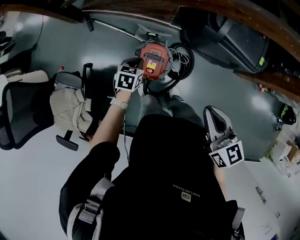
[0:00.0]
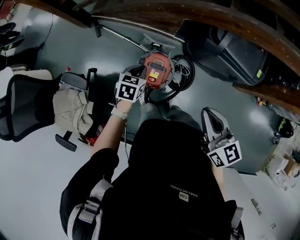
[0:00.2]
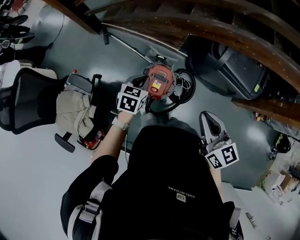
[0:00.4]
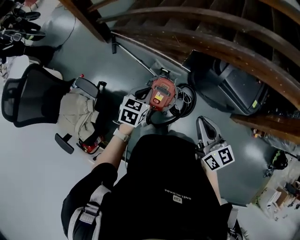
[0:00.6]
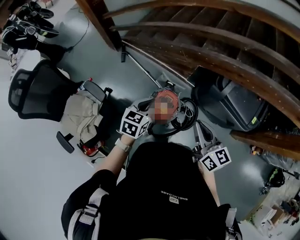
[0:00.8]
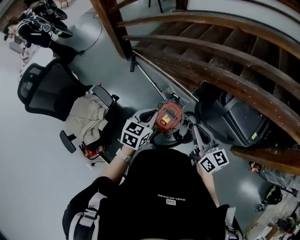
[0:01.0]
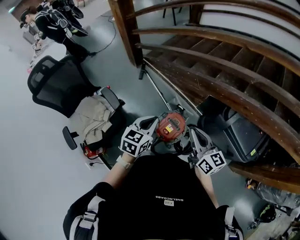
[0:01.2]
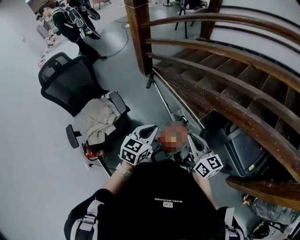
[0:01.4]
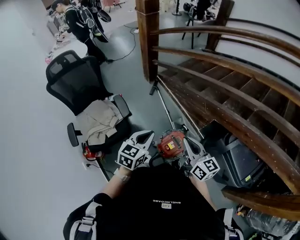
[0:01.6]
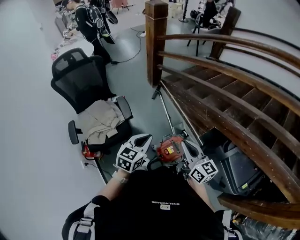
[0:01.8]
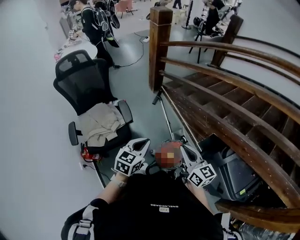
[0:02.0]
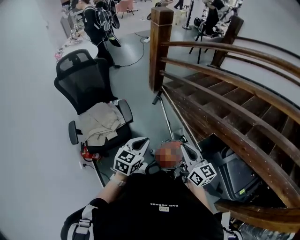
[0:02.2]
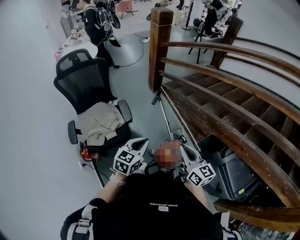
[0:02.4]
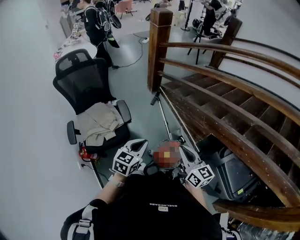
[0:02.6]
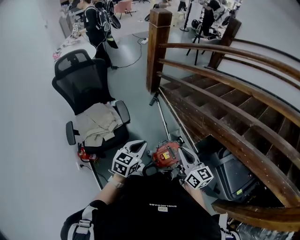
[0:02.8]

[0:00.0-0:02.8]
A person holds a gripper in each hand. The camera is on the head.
0:00.0 to 0:01.4: The right gripper changes place by some 15 cm, and rotates roughly 40 degrees. The left gripper travels upward by approximately 30 cm, and swivels approximately 40 degrees.
0:01.4 to 0:02.8: The two grippers go approximately 5 cm to the left.

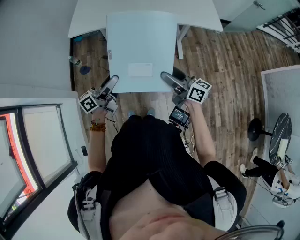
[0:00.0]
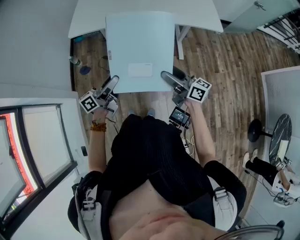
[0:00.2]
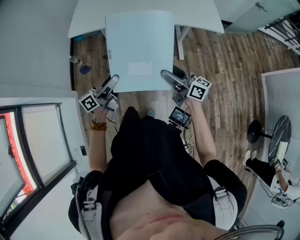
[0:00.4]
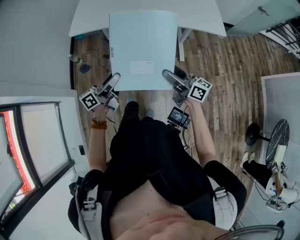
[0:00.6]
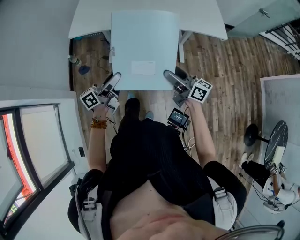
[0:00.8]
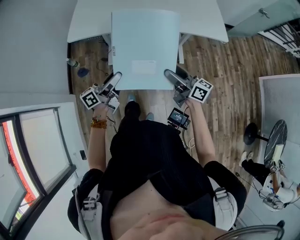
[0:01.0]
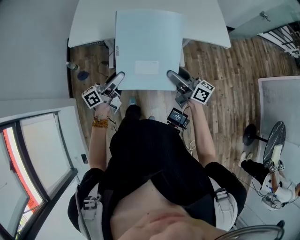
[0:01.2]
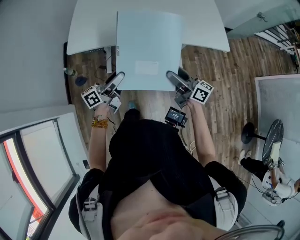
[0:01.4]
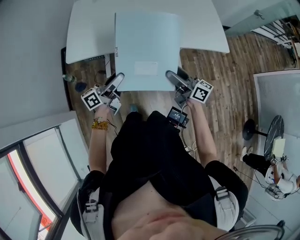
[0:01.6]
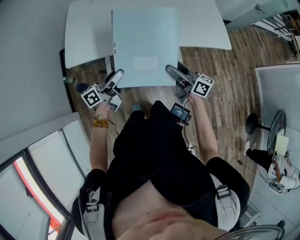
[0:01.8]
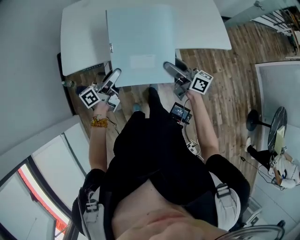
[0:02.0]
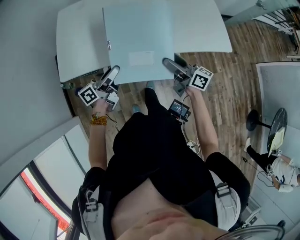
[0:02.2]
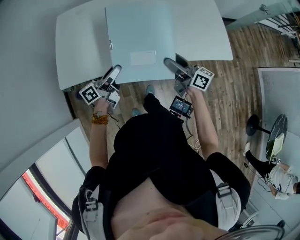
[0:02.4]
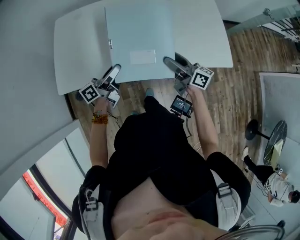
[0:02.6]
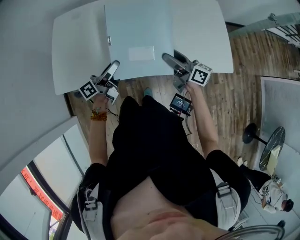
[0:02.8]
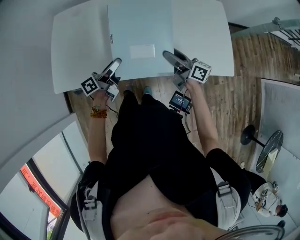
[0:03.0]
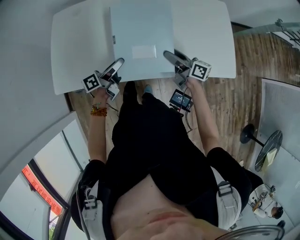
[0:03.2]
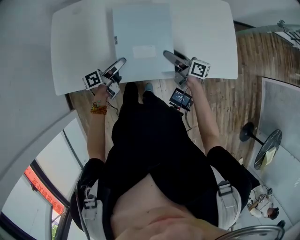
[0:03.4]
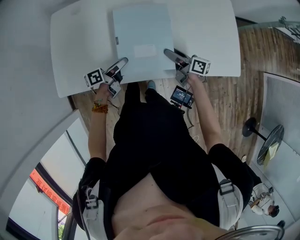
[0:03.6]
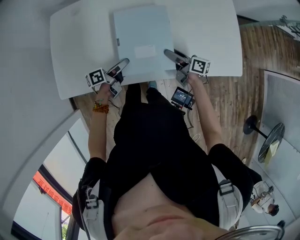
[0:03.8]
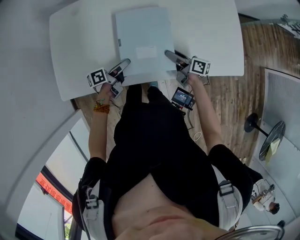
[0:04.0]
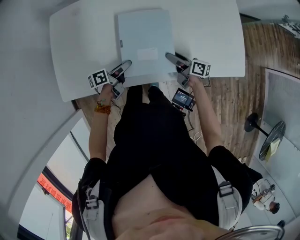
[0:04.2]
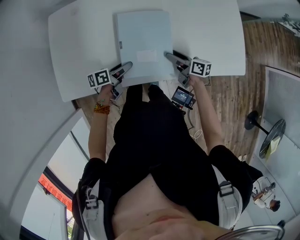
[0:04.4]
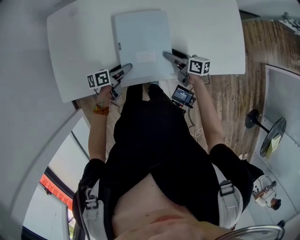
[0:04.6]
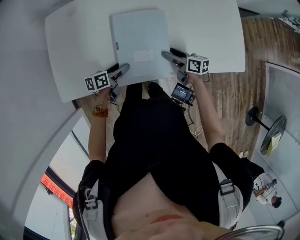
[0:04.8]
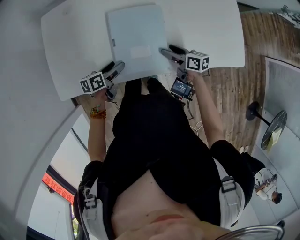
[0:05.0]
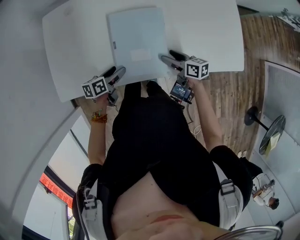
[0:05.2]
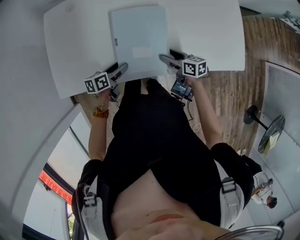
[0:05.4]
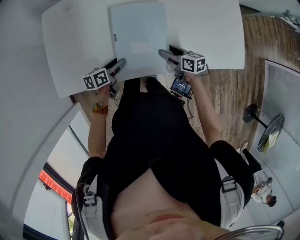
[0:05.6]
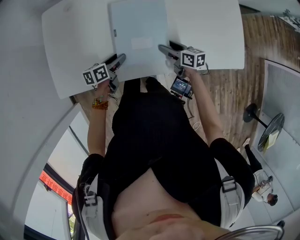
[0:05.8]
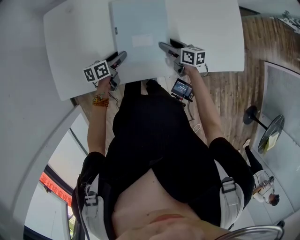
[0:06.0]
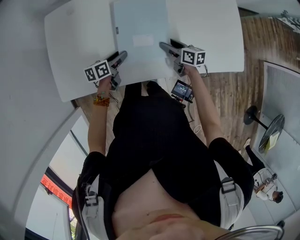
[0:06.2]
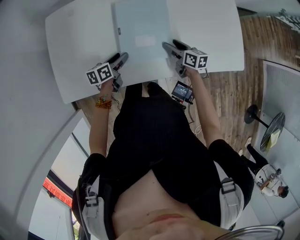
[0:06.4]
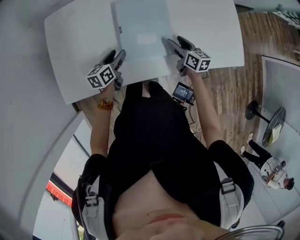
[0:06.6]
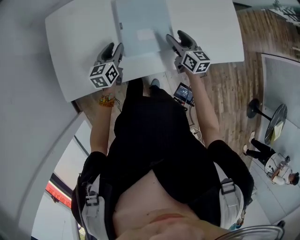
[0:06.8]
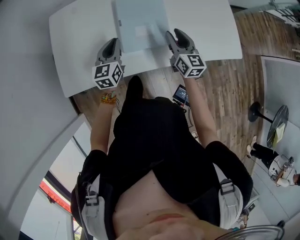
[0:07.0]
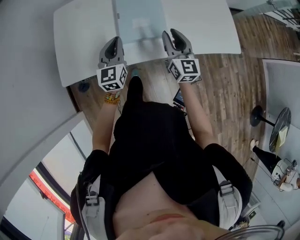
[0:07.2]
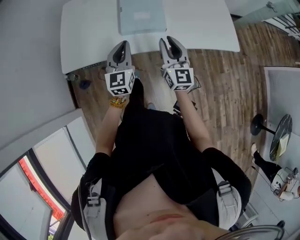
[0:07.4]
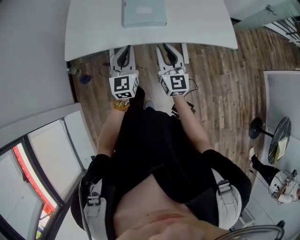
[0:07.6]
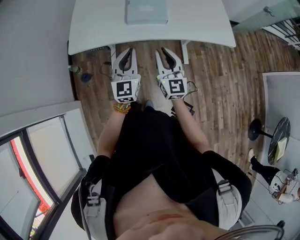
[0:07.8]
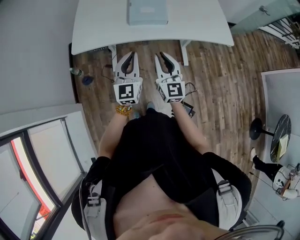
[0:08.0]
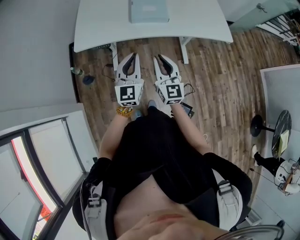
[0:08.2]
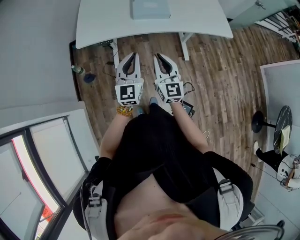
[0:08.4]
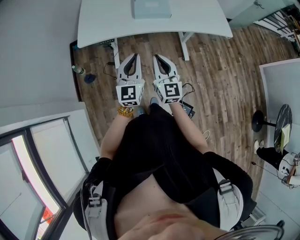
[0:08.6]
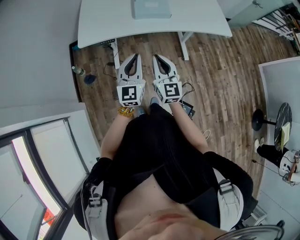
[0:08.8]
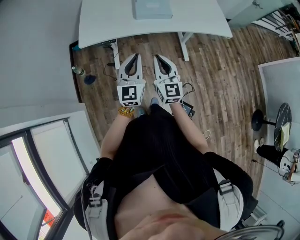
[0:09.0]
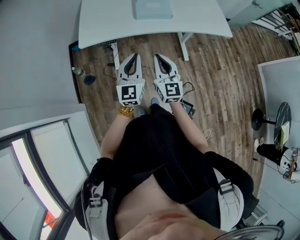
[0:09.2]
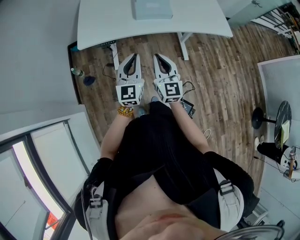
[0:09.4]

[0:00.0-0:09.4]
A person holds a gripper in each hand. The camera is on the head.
0:00.0 to 0:01.6: Both grippers stay put.
0:01.6 to 0:03.2: The left gripper is displaced forward and downward by some 20 cm; the right gripper shifts roughly 20 cm forward.
0:03.2 to 0:04.8: Both grippers move downward, approximately 10 cm. The left gripper turns by some 30 degrees.
0:04.8 to 0:06.2: The left gripper travels forward by about 5 cm.
0:06.2 to 0:07.8: The two grippers go approximately 35 cm backward and upward. The right gripper tips its fingers upward by about 30 degrees, and closes its fingers; the left gripper angles its fingers upward, by about 30 degrees, and closes.
0:07.8 to 0:09.4: The left gripper heads backward and to the left, covering about 10 cm. Meanwhile the right gripper goes about 15 cm to the left and backward.

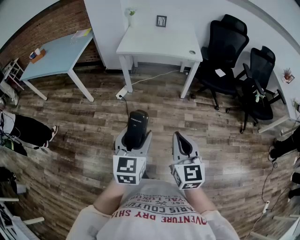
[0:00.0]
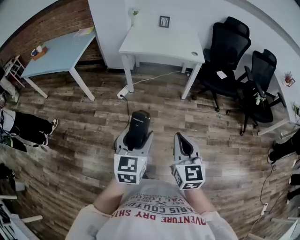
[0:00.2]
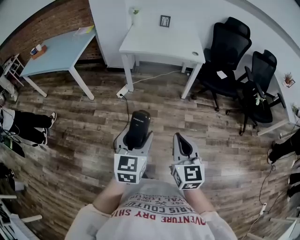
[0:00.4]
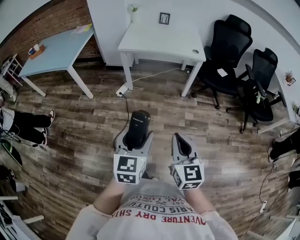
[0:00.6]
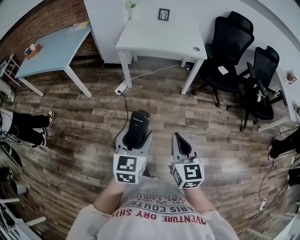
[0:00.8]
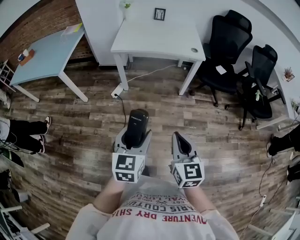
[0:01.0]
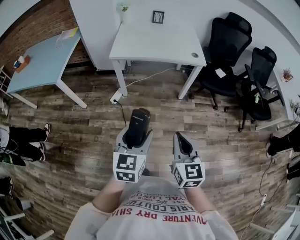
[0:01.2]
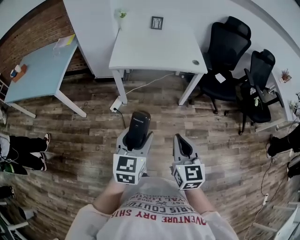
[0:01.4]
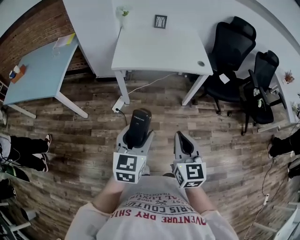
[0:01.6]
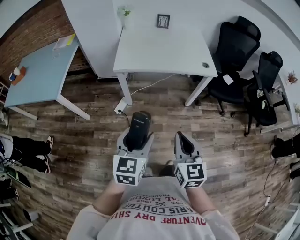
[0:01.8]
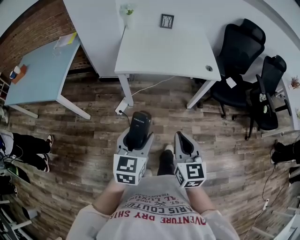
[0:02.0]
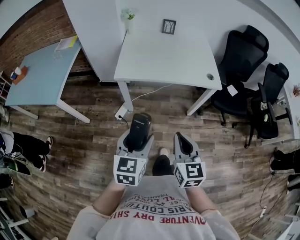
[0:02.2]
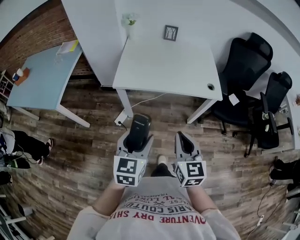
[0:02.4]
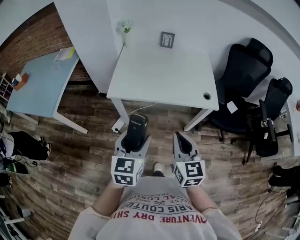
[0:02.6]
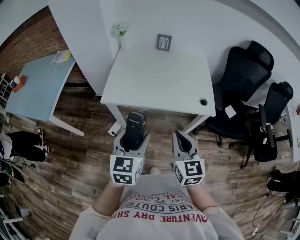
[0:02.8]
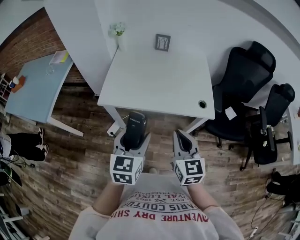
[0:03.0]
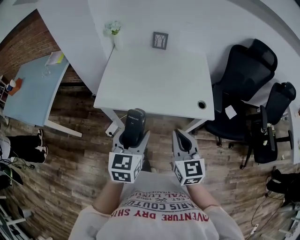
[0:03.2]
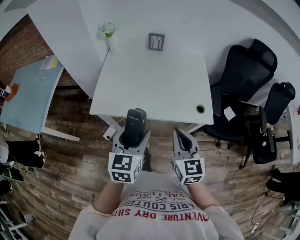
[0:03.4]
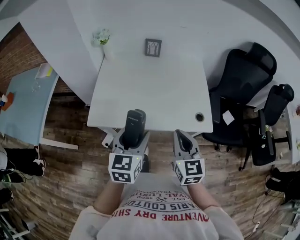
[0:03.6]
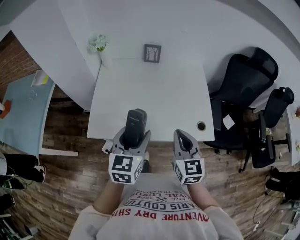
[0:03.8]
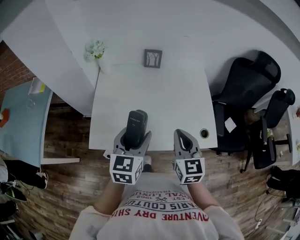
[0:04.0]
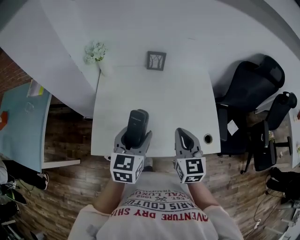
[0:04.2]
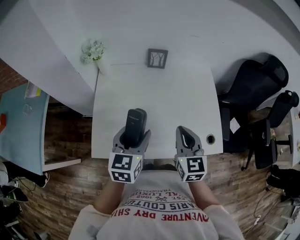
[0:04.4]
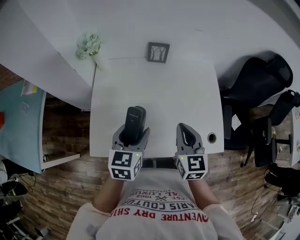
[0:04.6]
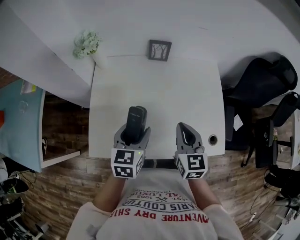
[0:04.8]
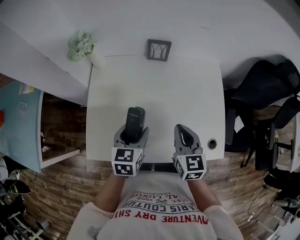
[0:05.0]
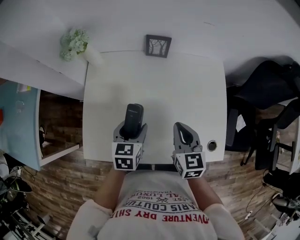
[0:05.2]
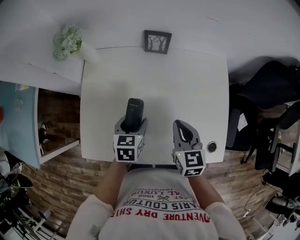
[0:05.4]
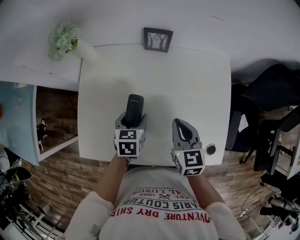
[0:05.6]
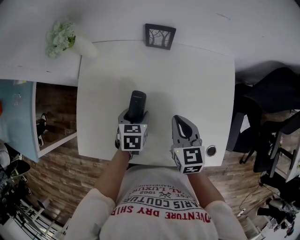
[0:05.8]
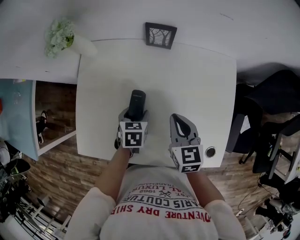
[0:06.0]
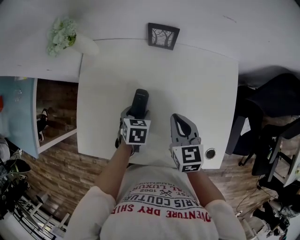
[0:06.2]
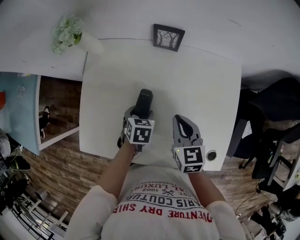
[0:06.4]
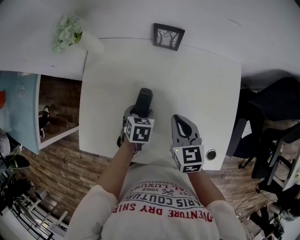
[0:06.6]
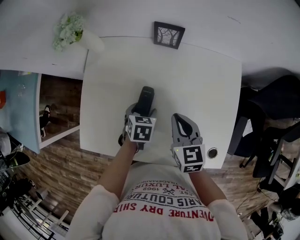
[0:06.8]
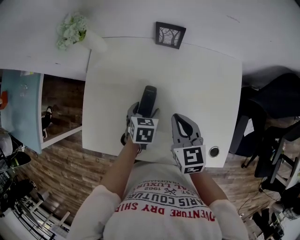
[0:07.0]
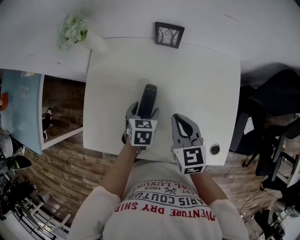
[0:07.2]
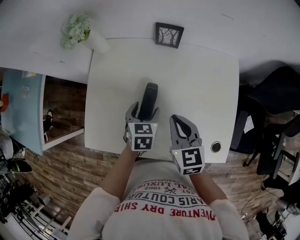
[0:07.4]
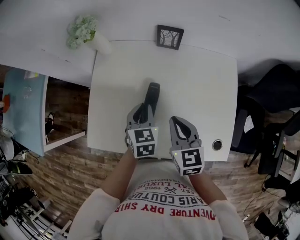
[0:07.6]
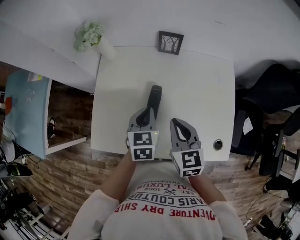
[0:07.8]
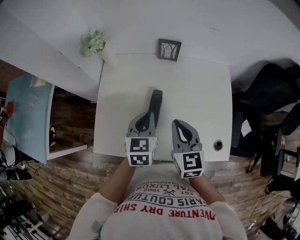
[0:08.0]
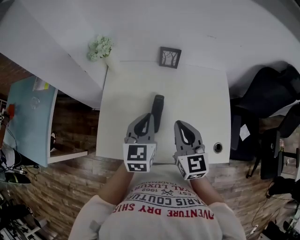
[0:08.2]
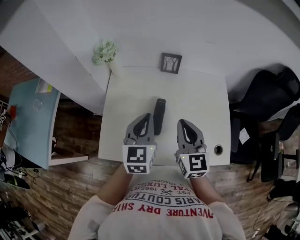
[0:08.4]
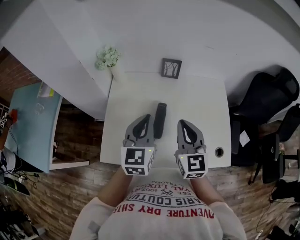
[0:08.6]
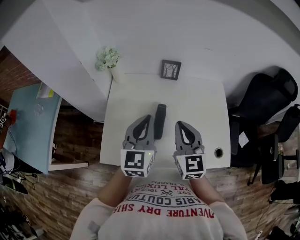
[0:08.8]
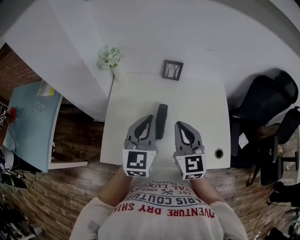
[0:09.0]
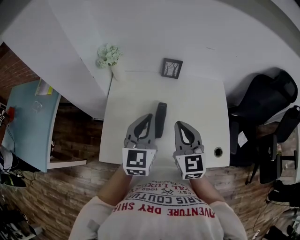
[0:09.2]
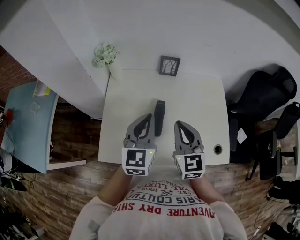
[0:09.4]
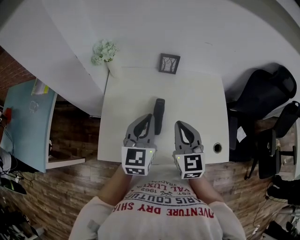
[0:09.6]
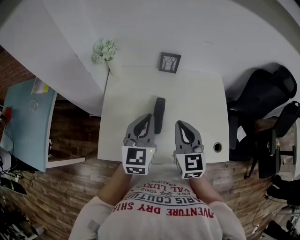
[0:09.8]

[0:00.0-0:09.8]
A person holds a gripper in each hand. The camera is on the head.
0:00.0 to 0:01.4: The left gripper travels forward by some 25 cm, while the right gripper is displaced forward and to the left by approximately 25 cm.
0:01.4 to 0:02.8: Both grippers move forward, about 35 cm.
0:02.8 to 0:04.2: Both grippers move forward, some 35 cm.
0:04.2 to 0:05.6: The right gripper goes approximately 20 cm forward and downward; the left gripper travels downward and forward by about 25 cm, and rotates some 30 degrees.
0:05.6 to 0:07.0: The grippers stay close to where they were, moving slightly.
0:07.0 to 0:08.4: The left gripper moves upward, roughly 25 cm, tilts its fingers approximately 40 degrees upward, and closes its fingers. The right gripper shifts approximately 15 cm upward and backward, and swivels about 30 degrees.
0:08.4 to 0:09.8: The grippers move only a little.

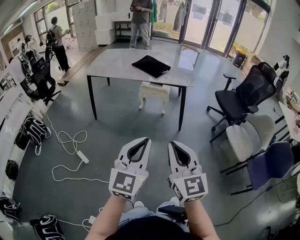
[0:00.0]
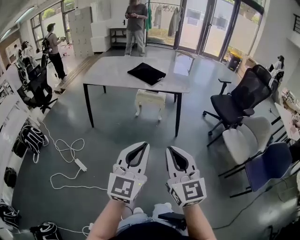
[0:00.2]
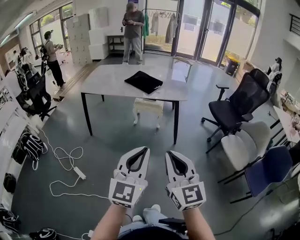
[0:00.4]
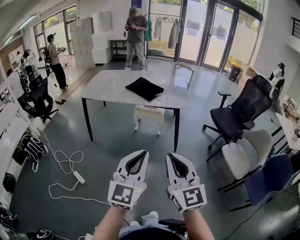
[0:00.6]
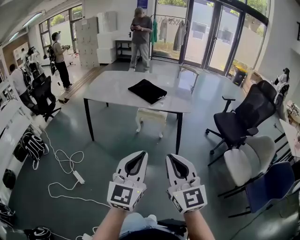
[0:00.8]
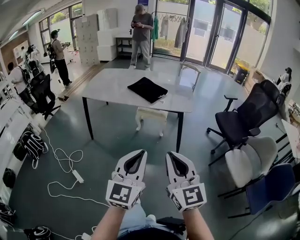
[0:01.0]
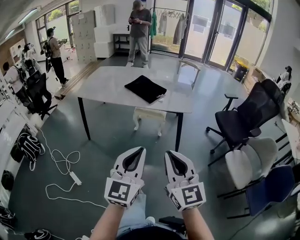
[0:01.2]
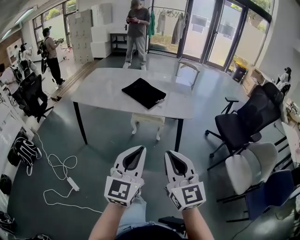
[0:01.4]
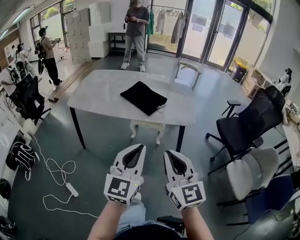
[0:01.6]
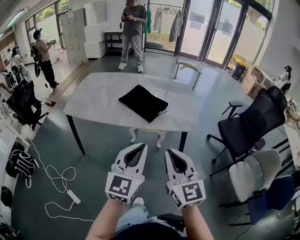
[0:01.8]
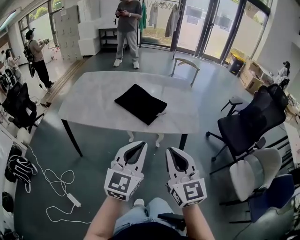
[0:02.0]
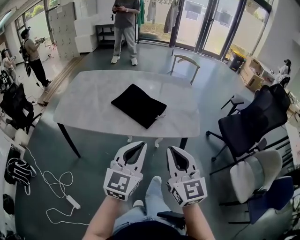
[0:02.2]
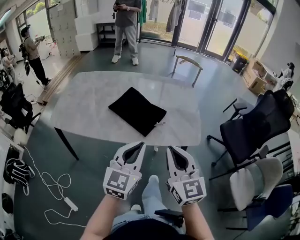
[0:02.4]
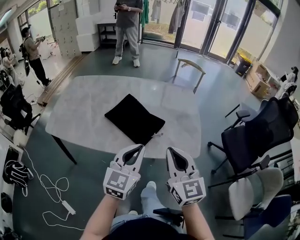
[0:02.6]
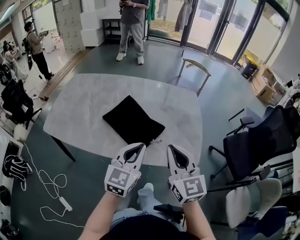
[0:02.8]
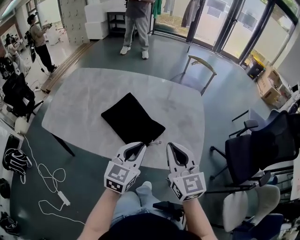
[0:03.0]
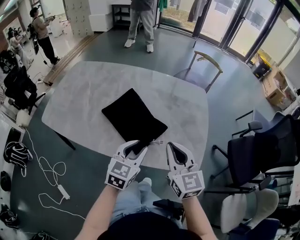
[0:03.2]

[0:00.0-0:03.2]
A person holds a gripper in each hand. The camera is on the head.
0:00.0 to 0:01.6: Both grippers move forward, roughly 30 cm.
0:01.6 to 0:03.2: The right gripper travels forward by approximately 40 cm; the left gripper shifts roughly 40 cm forward and downward, turns by approximately 30 degrees, and opens its fingers.
